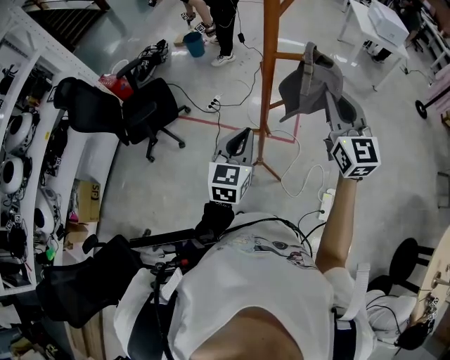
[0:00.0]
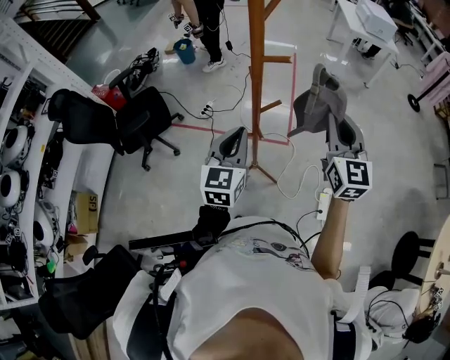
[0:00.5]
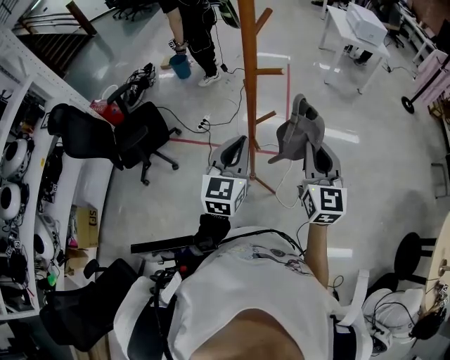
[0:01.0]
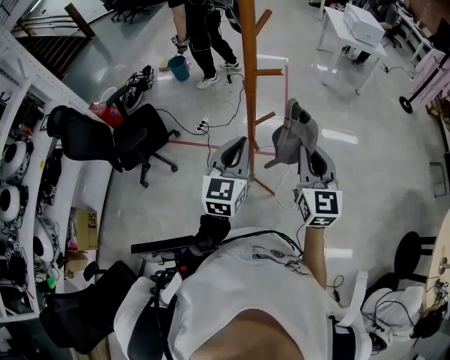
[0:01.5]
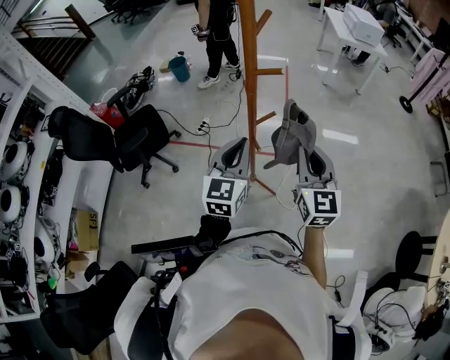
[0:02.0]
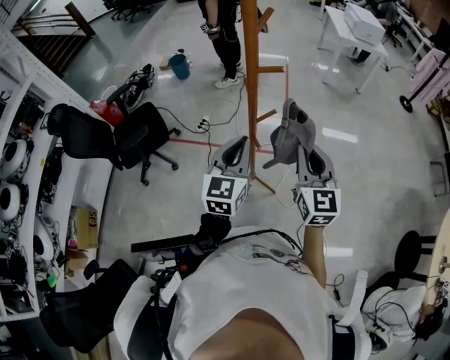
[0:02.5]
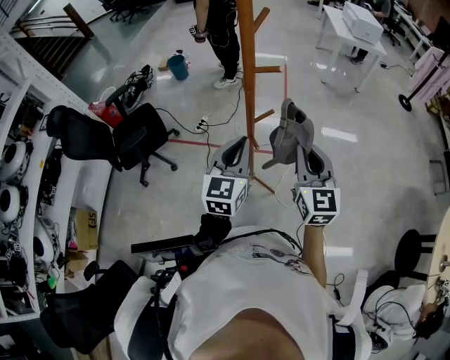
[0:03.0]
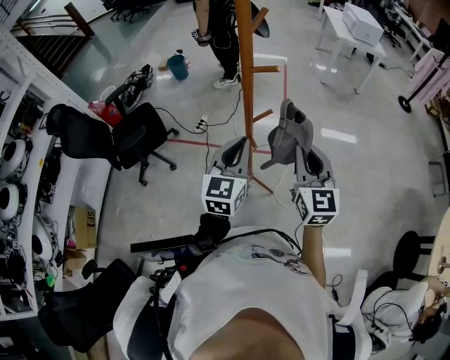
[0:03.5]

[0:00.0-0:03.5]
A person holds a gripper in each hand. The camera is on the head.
0:00.0 to 0:02.0: The right gripper goes about 10 cm backward and downward; the left gripper moves roughly 5 cm.
0:02.0 to 0:03.5: Both grippers stay about where they are.

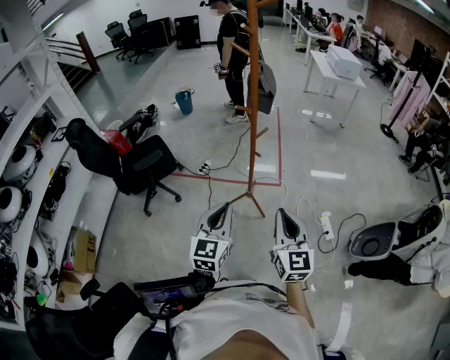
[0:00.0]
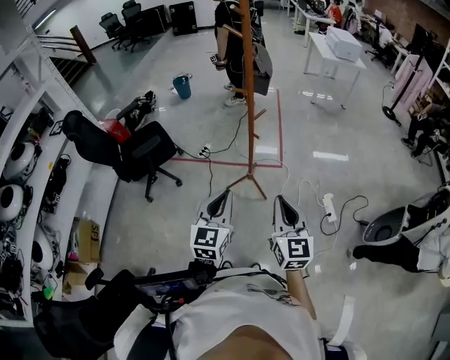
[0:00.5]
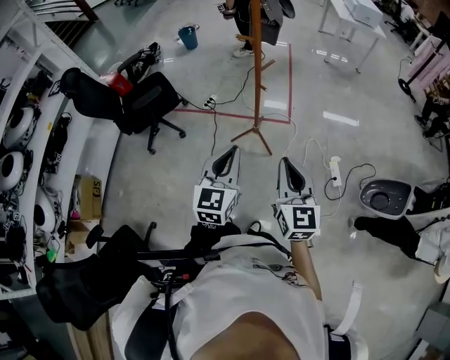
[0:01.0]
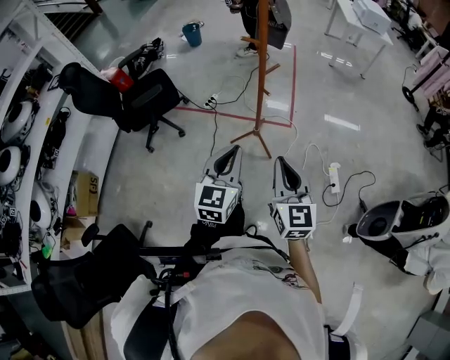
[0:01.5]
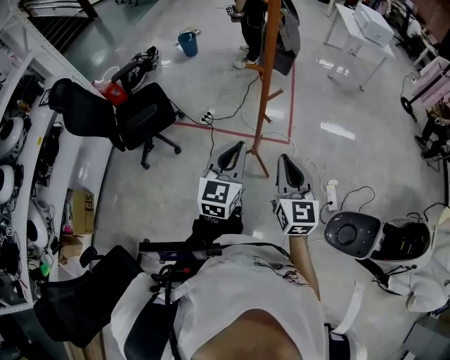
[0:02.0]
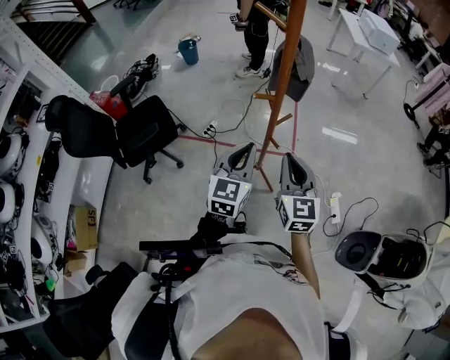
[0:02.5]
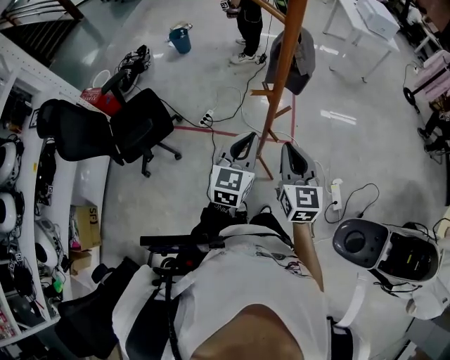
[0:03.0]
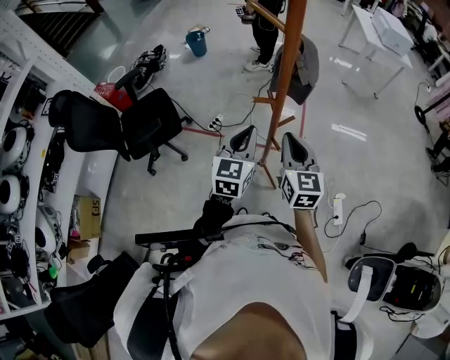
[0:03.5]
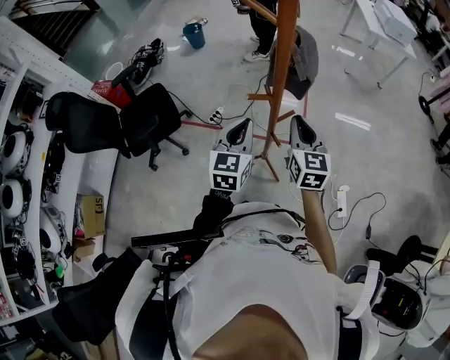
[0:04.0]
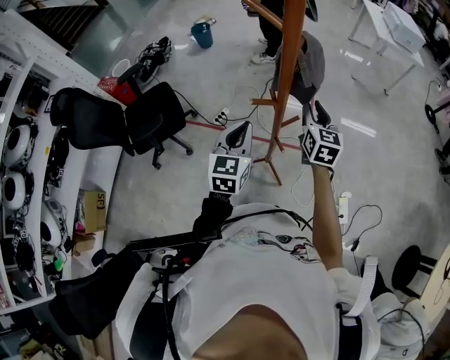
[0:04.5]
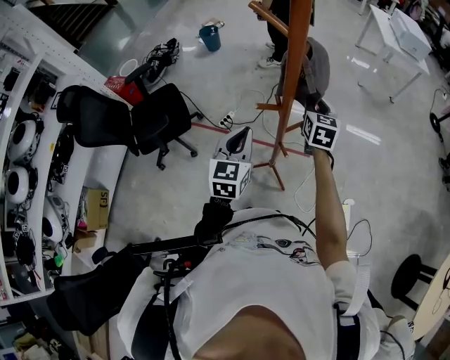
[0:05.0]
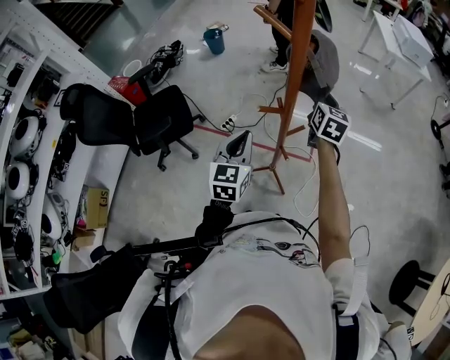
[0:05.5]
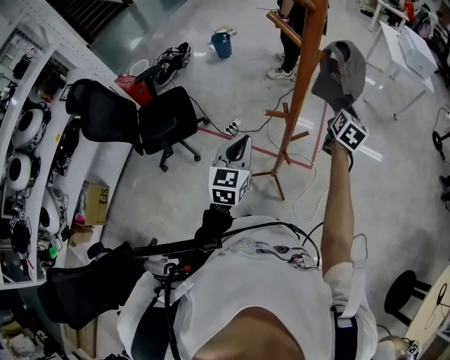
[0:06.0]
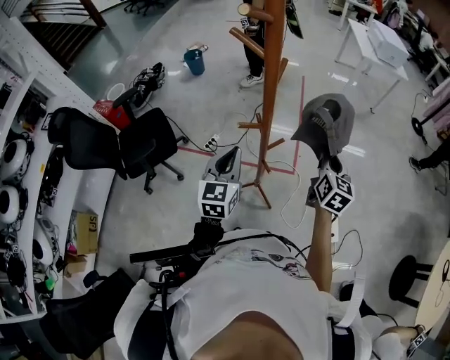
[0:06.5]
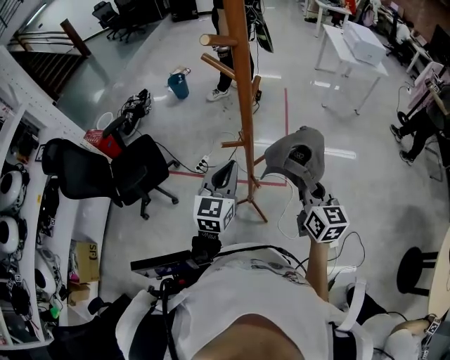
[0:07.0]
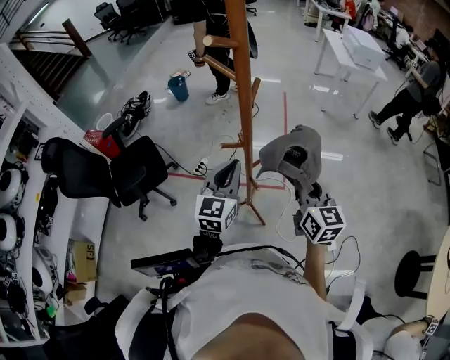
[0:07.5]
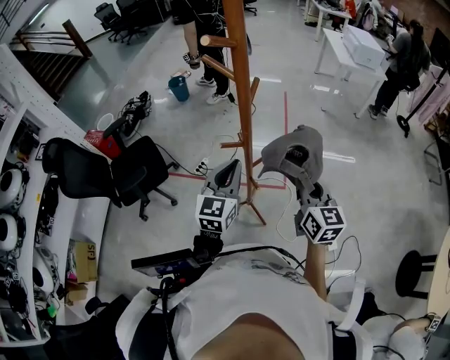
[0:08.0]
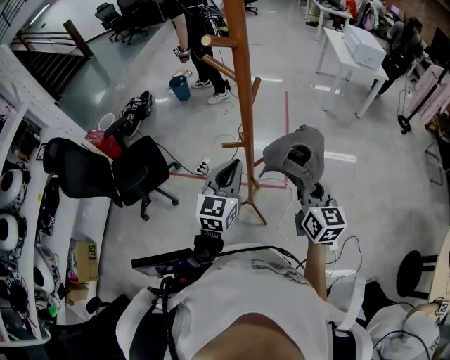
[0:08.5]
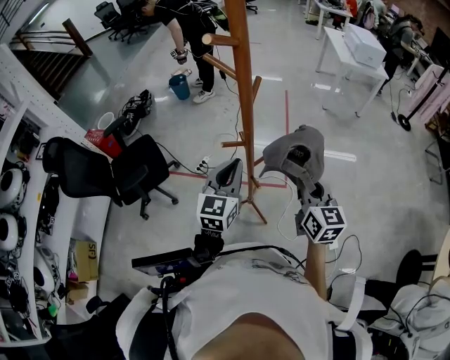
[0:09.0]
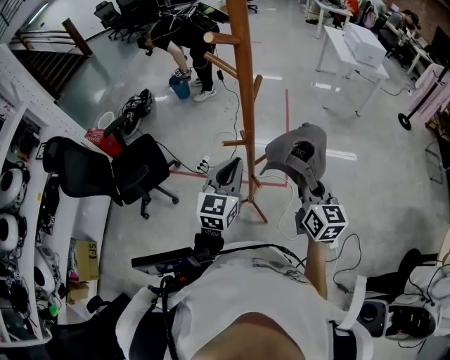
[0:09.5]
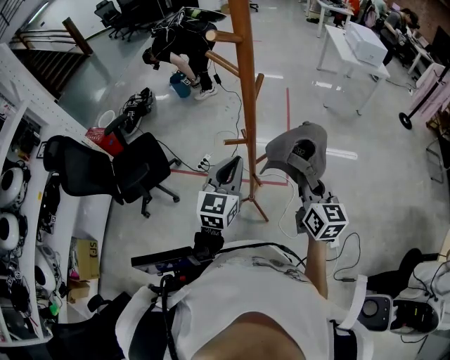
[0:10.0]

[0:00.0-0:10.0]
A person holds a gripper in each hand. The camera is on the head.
0:00.0 to 0:02.0: The two grippers go about 15 cm forward.
0:02.0 to 0:04.0: Both grippers travel together forward, some 25 cm.
0:04.0 to 0:06.0: The right gripper moves forward and to the right, roughly 20 cm, and swivels some 20 degrees.
0:06.0 to 0:08.0: The right gripper goes approximately 20 cm backward, and rotates about 20 degrees, while the left gripper heads to the right and upward, covering about 10 cm.
0:08.0 to 0:10.0: The two grippers keep their place.

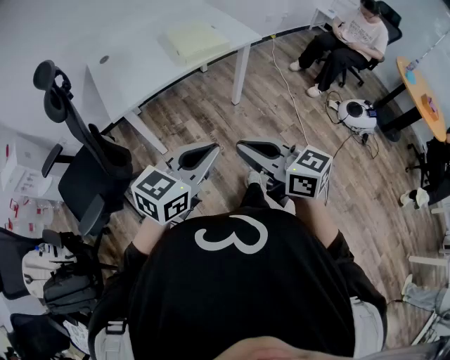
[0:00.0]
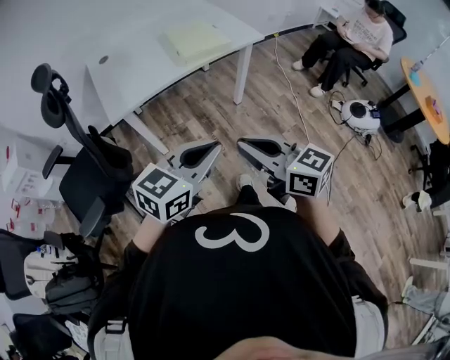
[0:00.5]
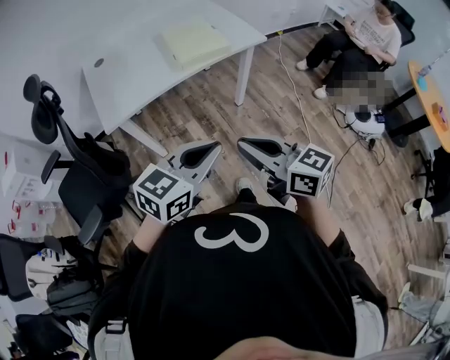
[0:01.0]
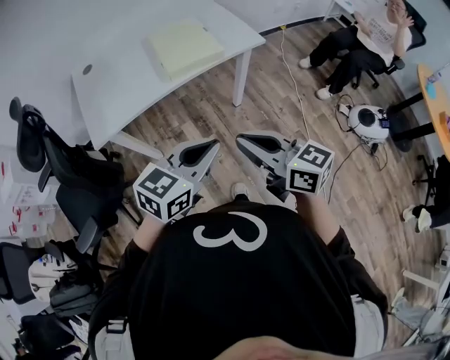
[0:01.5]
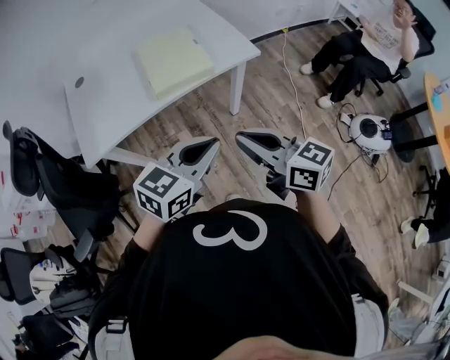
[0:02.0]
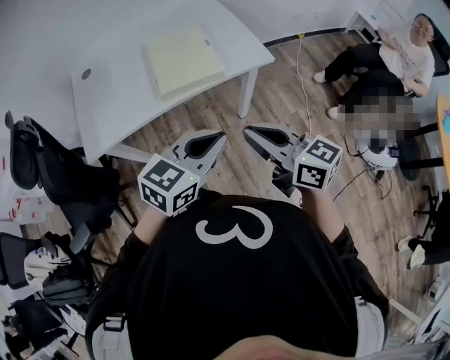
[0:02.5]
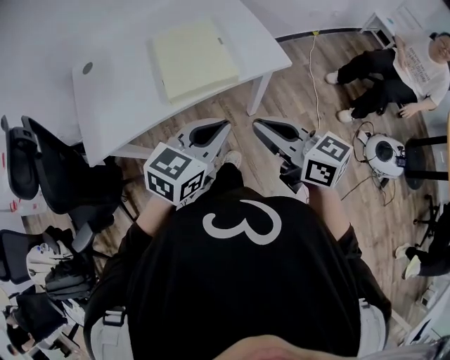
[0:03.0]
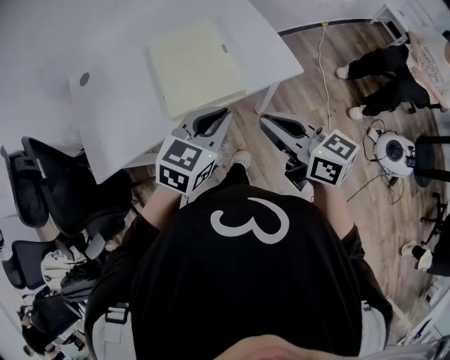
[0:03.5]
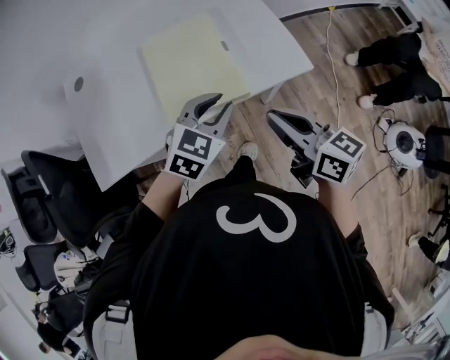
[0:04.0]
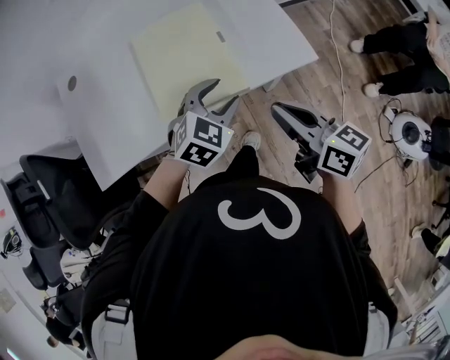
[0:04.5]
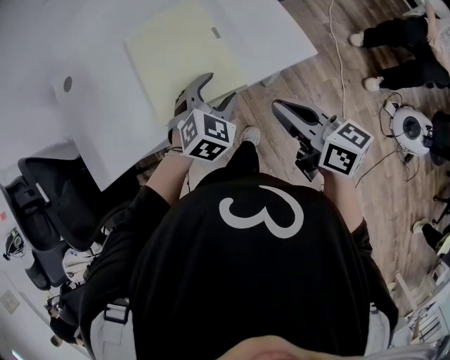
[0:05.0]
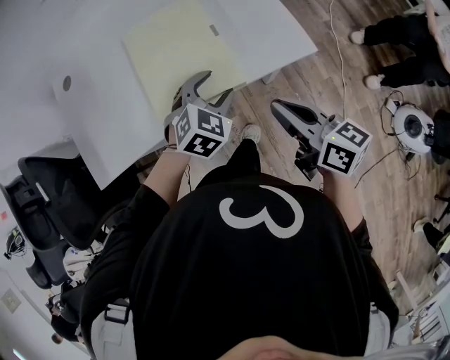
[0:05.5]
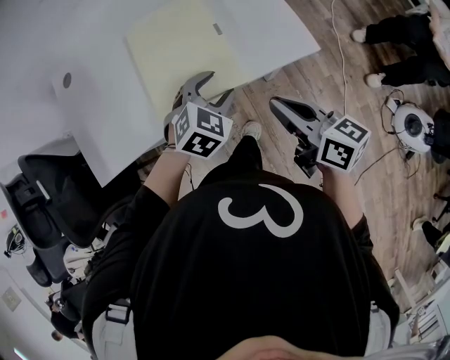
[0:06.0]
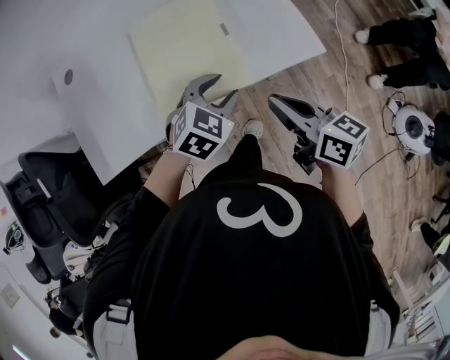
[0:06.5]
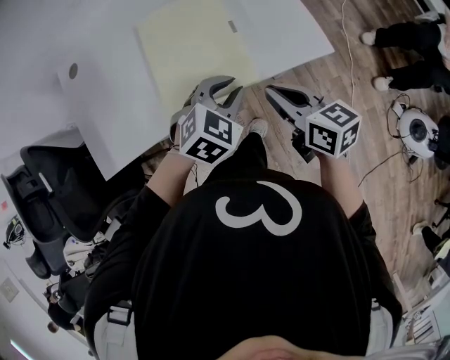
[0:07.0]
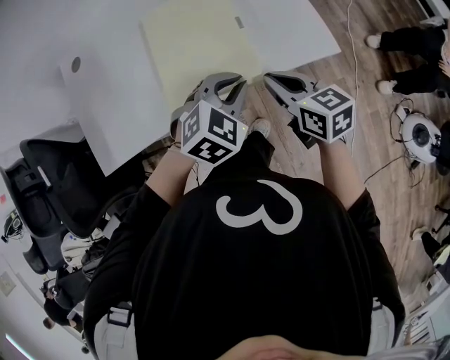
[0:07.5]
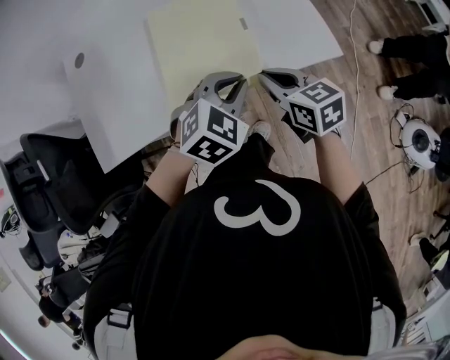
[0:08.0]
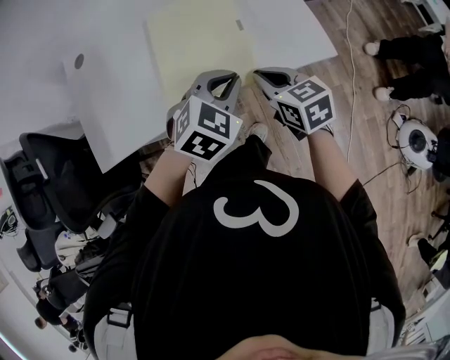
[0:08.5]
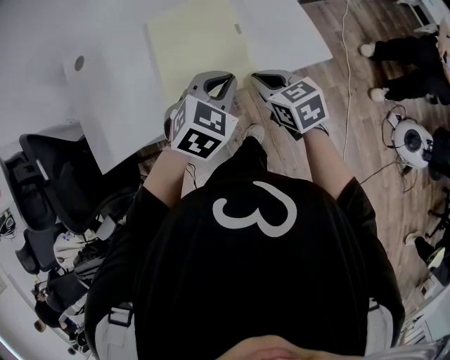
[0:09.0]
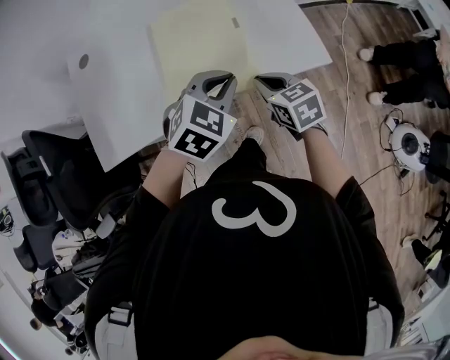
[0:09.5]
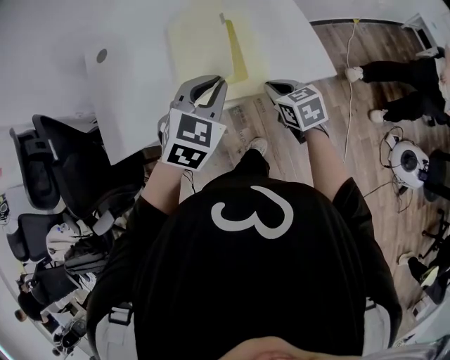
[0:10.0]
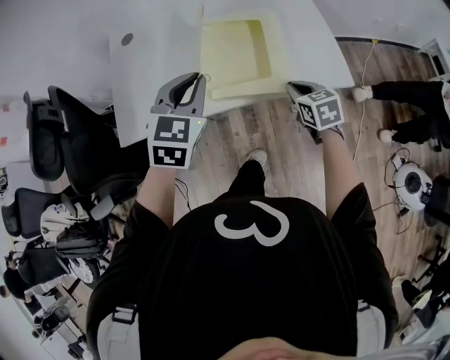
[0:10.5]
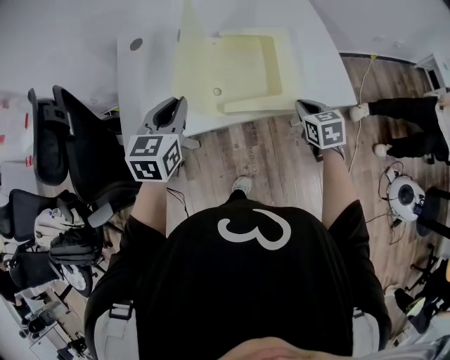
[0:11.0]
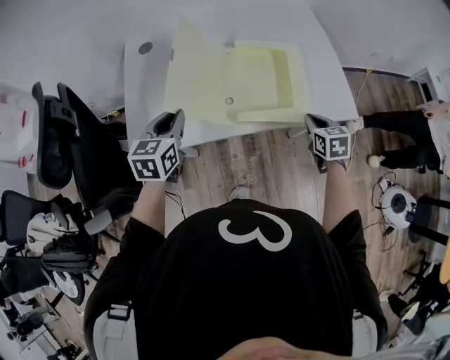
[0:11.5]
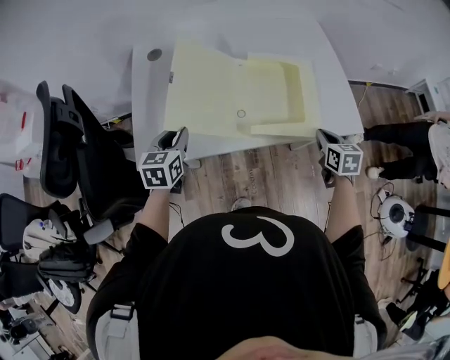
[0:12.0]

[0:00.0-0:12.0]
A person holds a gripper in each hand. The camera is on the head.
0:00.0 to 0:02.0: The two grippers go roughly 30 cm forward and to the right.
0:02.0 to 0:04.0: The two grippers go some 30 cm forward. The left gripper swivels about 30 degrees.
0:04.0 to 0:06.0: The left gripper is displaced downward by about 5 cm, and opens its fingers. Meanwhile the right gripper shifts by approximately 5 cm.
0:06.0 to 0:08.0: The left gripper closes; the right gripper goes roughly 10 cm forward, to the left and downward, and turns by roughly 20 degrees.
0:08.0 to 0:10.0: The left gripper shifts some 10 cm upward and to the left.
0:10.0 to 0:12.0: The left gripper goes approximately 35 cm to the left, and rotates approximately 40 degrees.

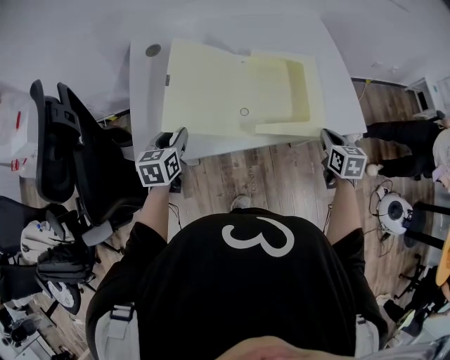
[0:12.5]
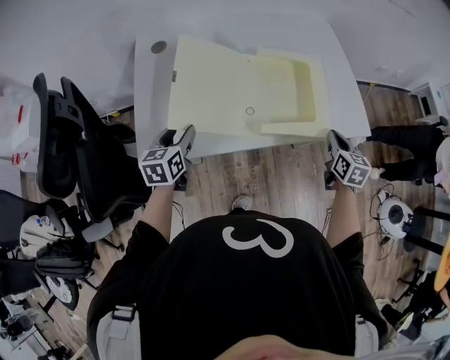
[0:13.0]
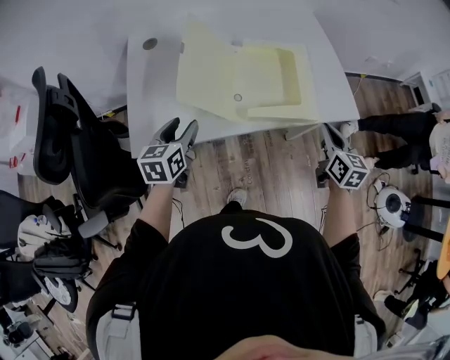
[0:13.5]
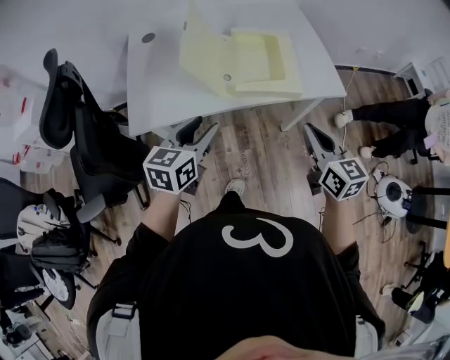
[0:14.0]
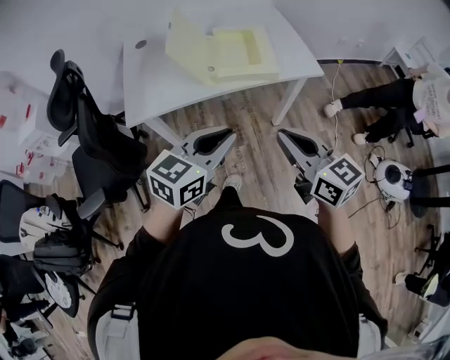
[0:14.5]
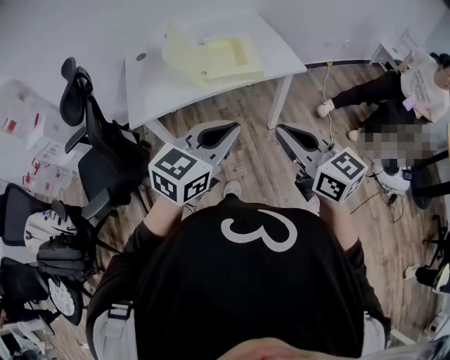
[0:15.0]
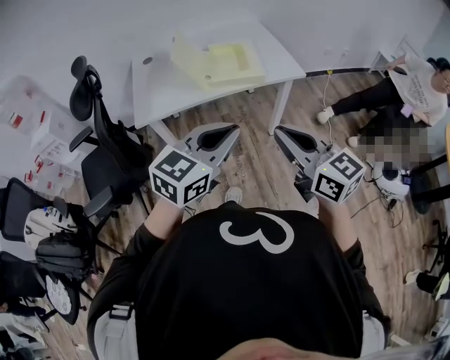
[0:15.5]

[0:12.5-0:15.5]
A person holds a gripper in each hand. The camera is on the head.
0:12.5 to 0:14.0: The left gripper goes approximately 25 cm to the right, backward and upward, and turns by about 20 degrees. The right gripper is displaced backward and upward by about 25 cm, and swivels some 30 degrees.
0:14.0 to 0:15.5: The right gripper shifts some 30 cm backward and upward. Meanwhile the left gripper shifts roughly 35 cm backward, to the right and upward, rotates roughly 30 degrees, and closes up.
